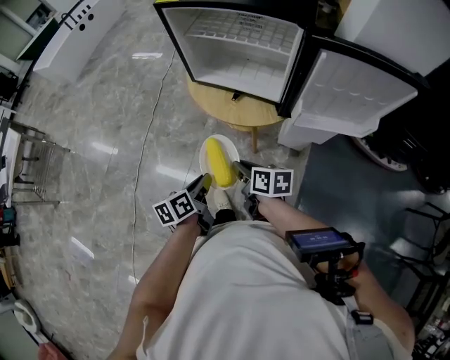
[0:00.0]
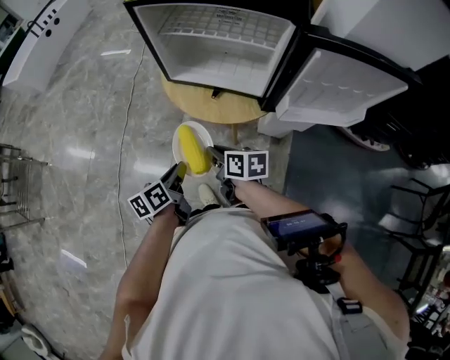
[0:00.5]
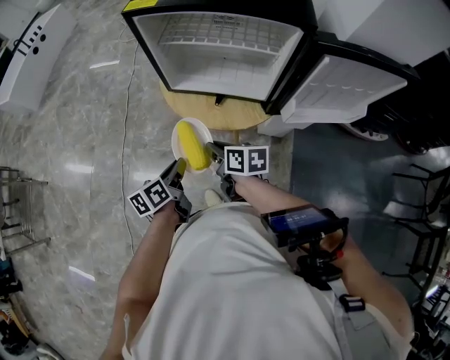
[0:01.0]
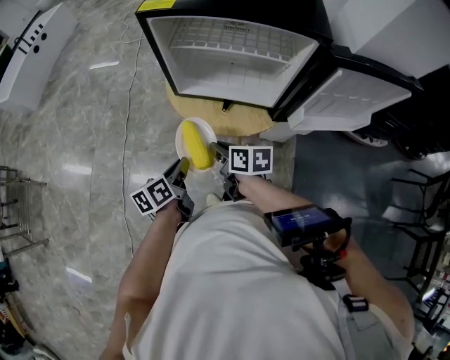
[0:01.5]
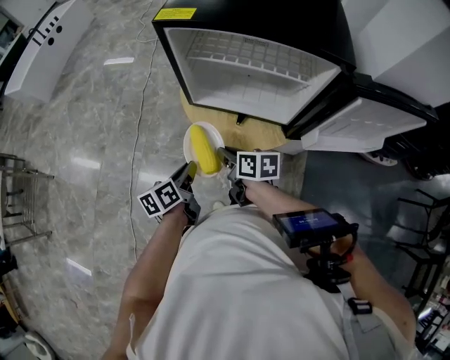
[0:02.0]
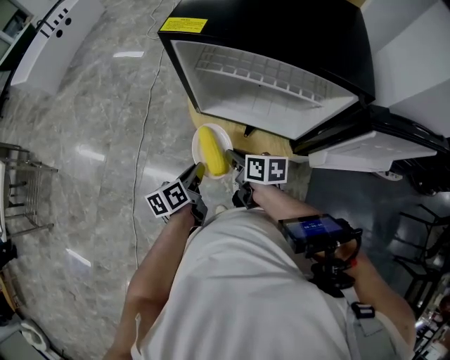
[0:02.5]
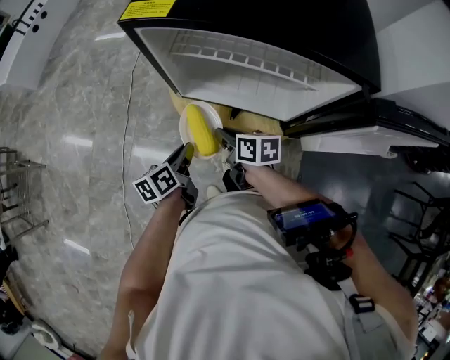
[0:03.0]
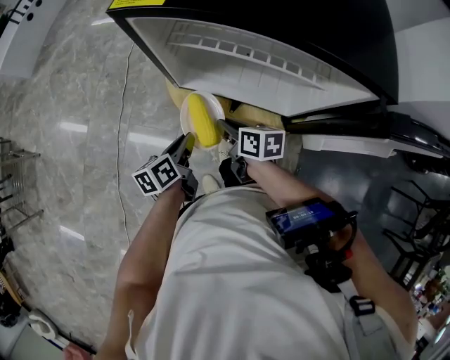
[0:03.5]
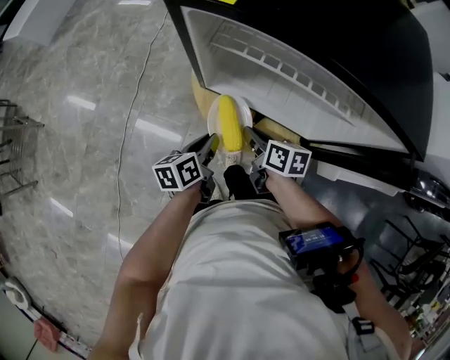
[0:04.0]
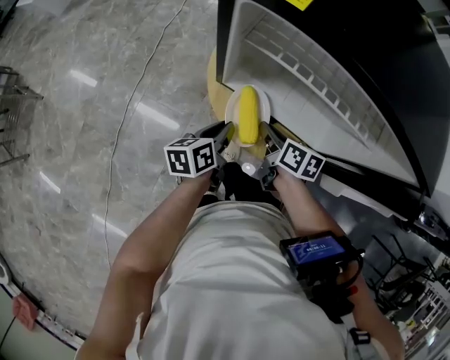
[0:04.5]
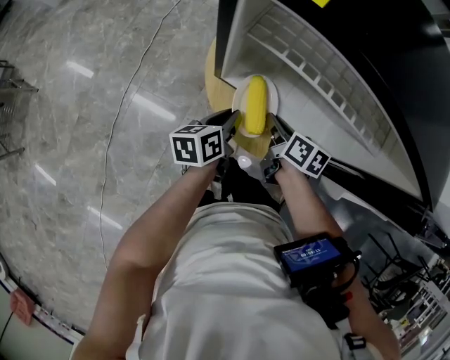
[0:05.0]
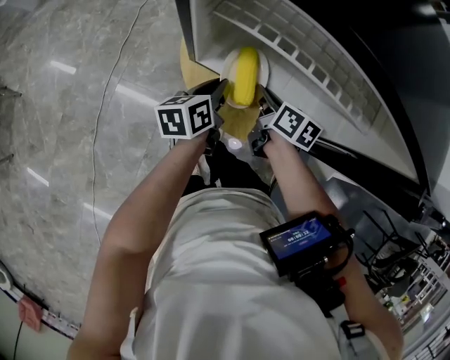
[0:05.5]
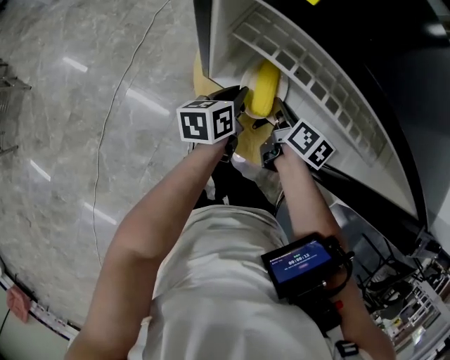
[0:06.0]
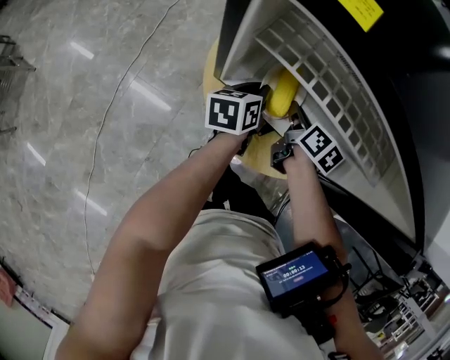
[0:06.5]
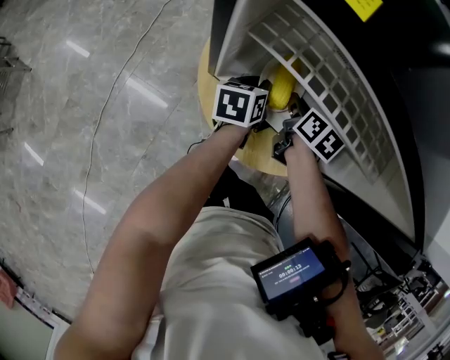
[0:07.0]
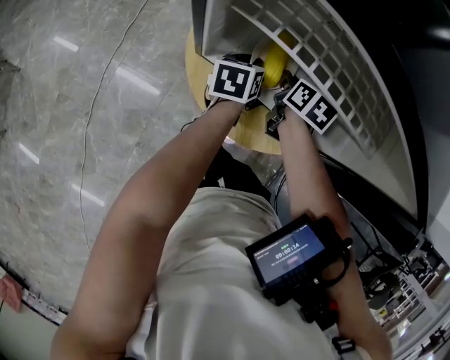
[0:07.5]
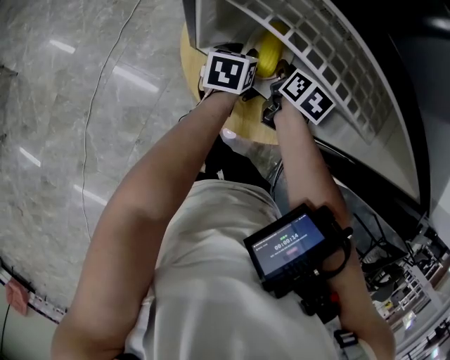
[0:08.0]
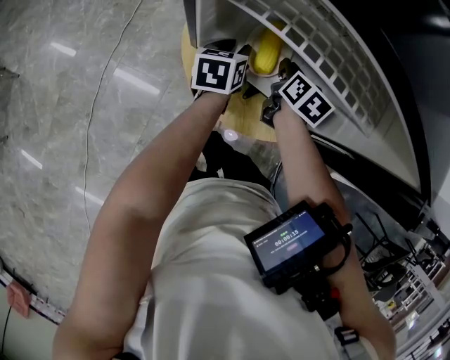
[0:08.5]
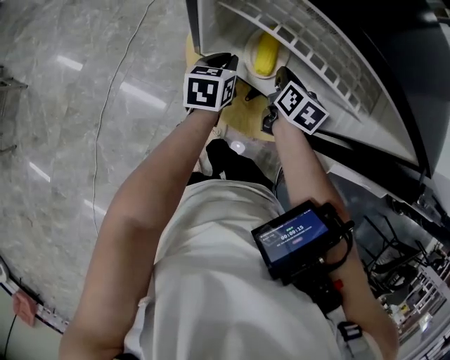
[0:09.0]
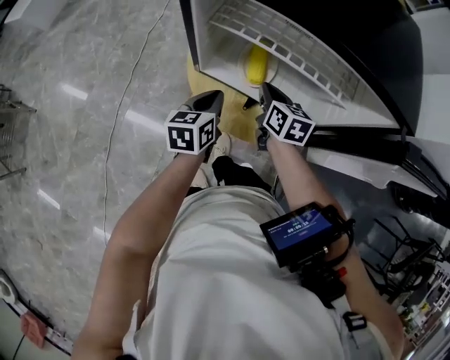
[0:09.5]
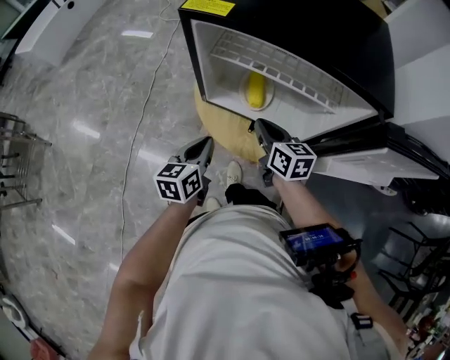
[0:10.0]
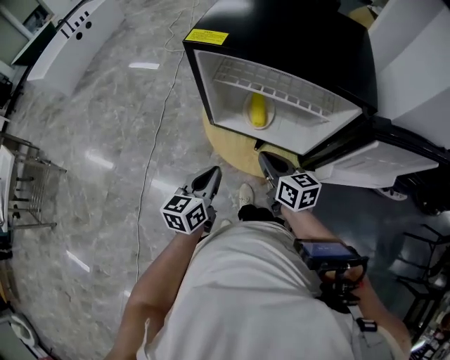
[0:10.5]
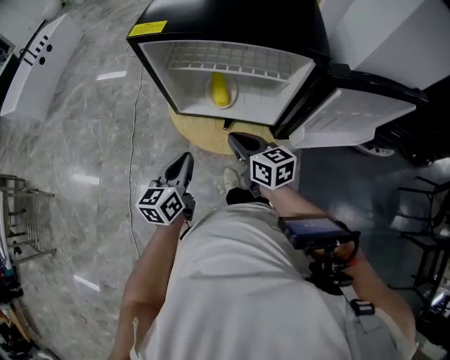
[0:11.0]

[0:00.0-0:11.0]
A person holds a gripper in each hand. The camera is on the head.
0:00.0 to 0:02.0: Both grippers travel together forward and to the left, about 20 cm.
0:02.0 to 0:03.5: The two grippers go about 10 cm forward.
0:03.5 to 0:05.5: Both grippers travel together forward and to the right, some 10 cm.
0:05.5 to 0:07.5: Both grippers travel together forward, some 10 cm. The right gripper turns by roughly 20 degrees.
0:07.5 to 0:09.0: The left gripper ends up some 5 cm from where it was.
0:09.0 to 0:11.0: Both grippers move backward and upward, roughly 25 cm. The right gripper turns by roughly 30 degrees. The left gripper rotates approximately 20 degrees.

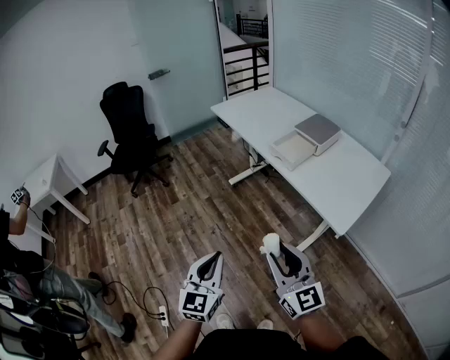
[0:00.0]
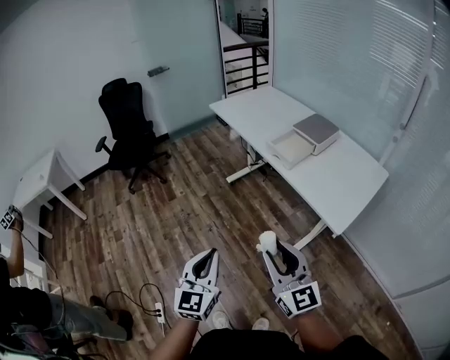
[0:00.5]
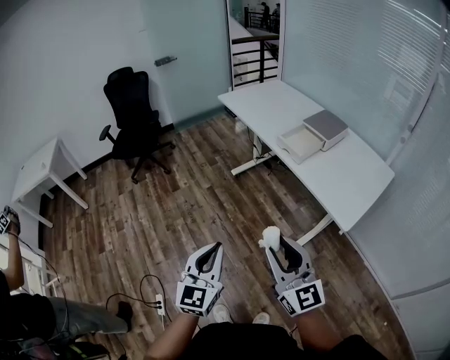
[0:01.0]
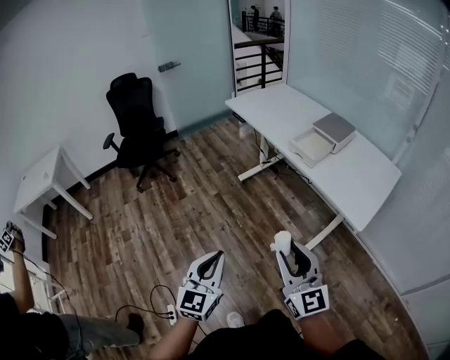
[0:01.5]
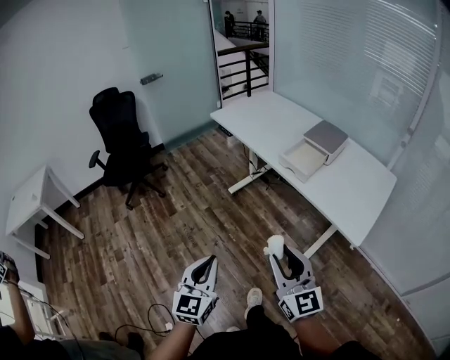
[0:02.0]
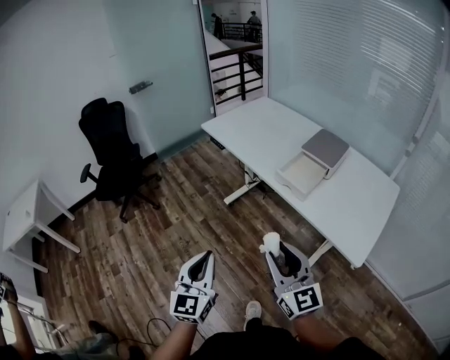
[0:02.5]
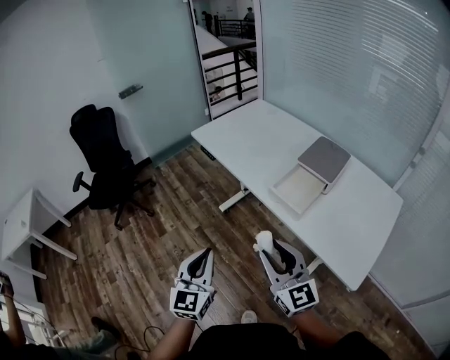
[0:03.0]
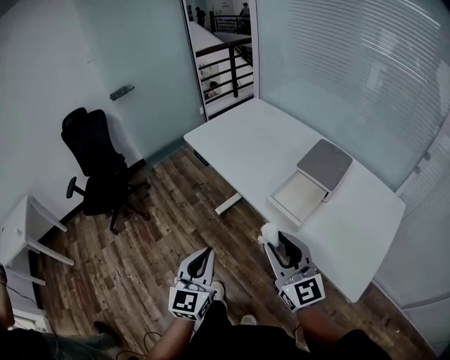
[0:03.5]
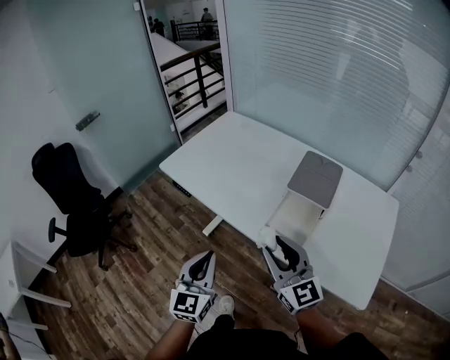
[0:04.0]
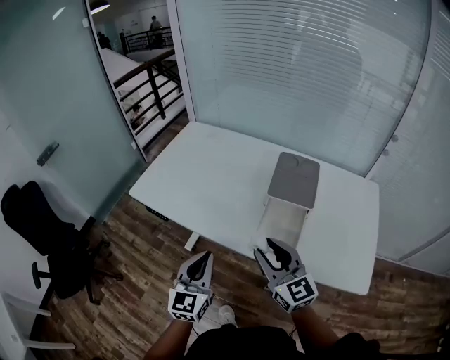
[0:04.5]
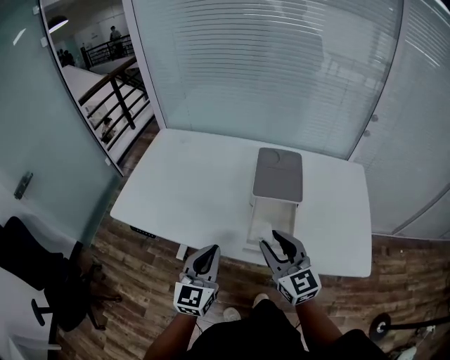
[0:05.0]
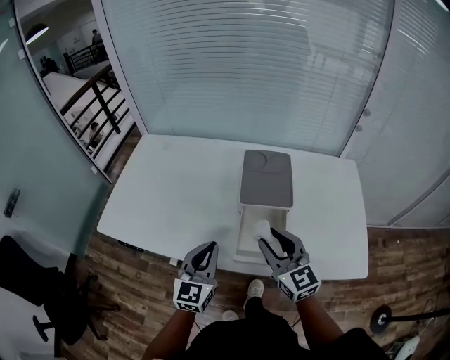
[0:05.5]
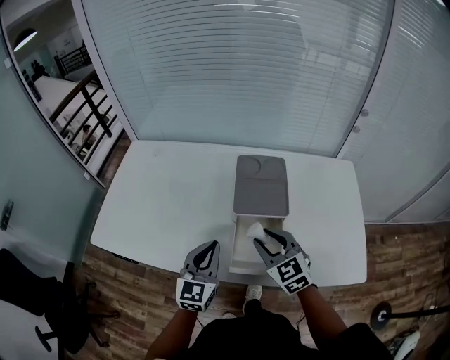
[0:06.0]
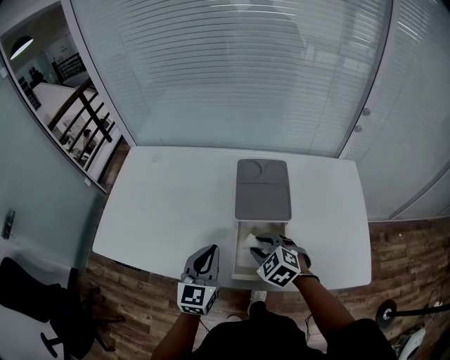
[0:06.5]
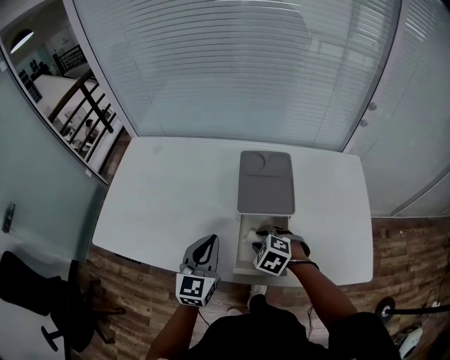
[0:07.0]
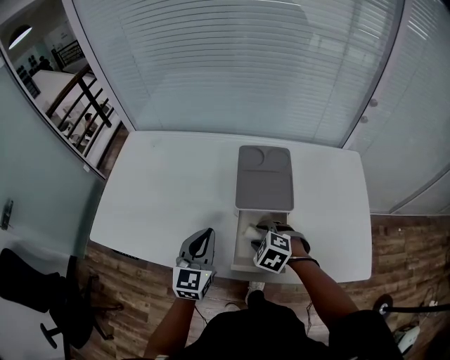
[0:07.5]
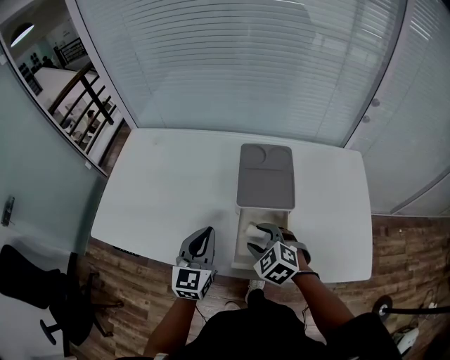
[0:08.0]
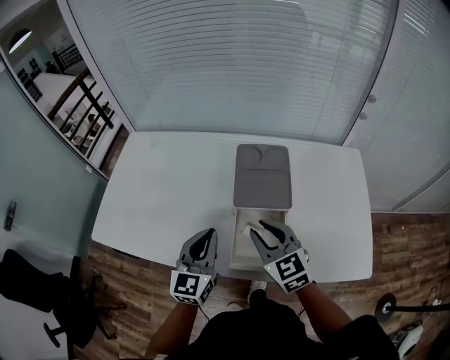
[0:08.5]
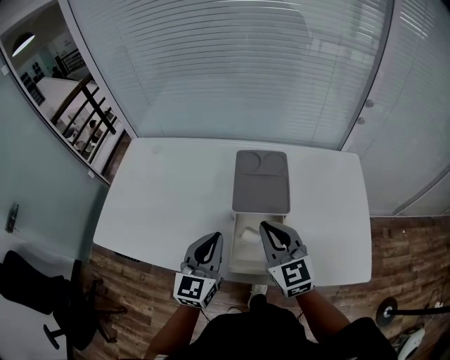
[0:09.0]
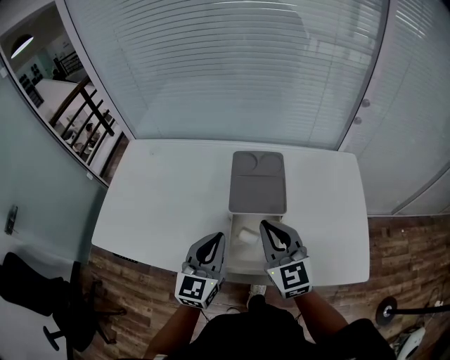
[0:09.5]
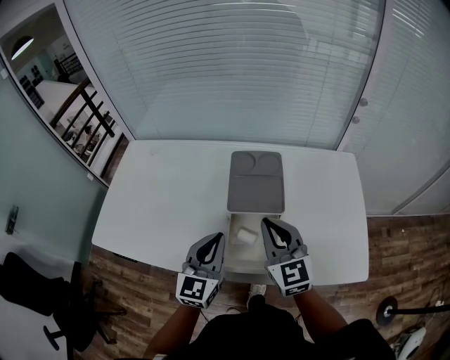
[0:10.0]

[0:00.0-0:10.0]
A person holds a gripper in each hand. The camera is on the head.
0:00.0 to 0:02.0: The right gripper shifts approximately 10 cm forward and to the left; the left gripper travels to the left and forward by roughly 10 cm.
0:02.0 to 0:04.0: The pair of grippers is taken forward, roughly 40 cm.
0:04.0 to 0:06.0: The right gripper changes place by roughly 20 cm, and turns by some 40 degrees. Meanwhile the left gripper shifts by about 25 cm, and swivels some 30 degrees.
0:06.0 to 0:08.0: The right gripper is displaced downward by about 5 cm, and changes its angle by about 30 degrees.
0:08.0 to 0:10.0: The right gripper moves upward and to the right, about 15 cm, tilts its fingers approximately 40 degrees upward, and closes its fingers, while the left gripper travels to the right by roughly 5 cm.

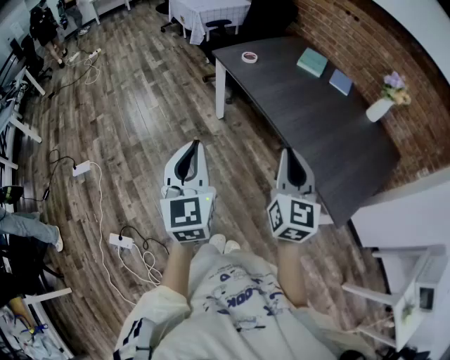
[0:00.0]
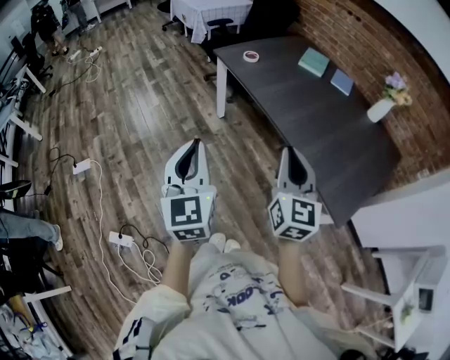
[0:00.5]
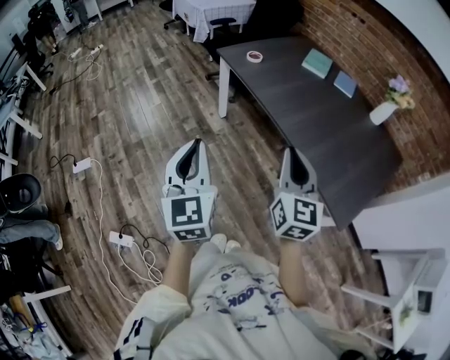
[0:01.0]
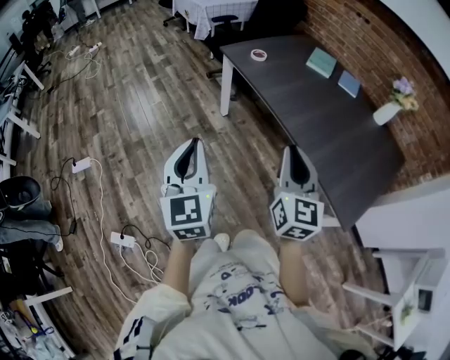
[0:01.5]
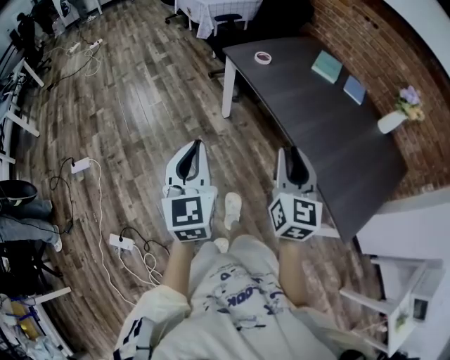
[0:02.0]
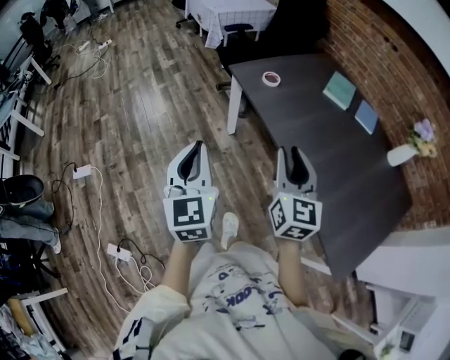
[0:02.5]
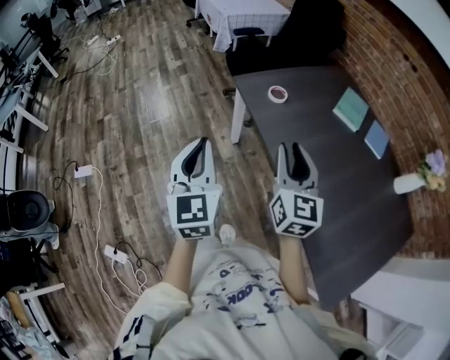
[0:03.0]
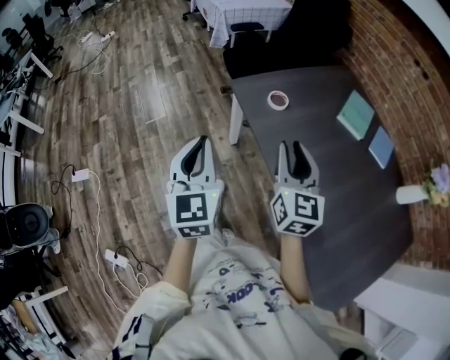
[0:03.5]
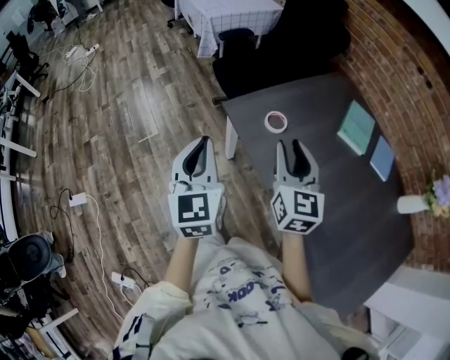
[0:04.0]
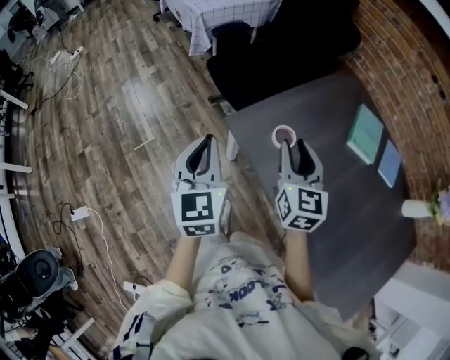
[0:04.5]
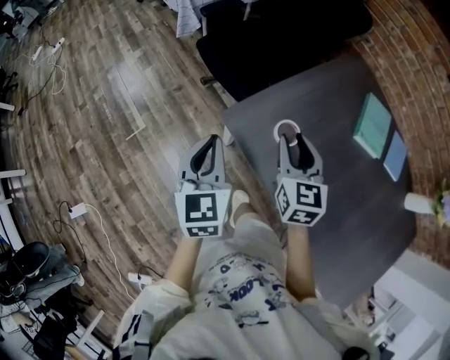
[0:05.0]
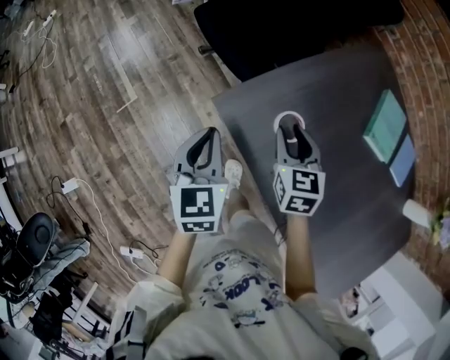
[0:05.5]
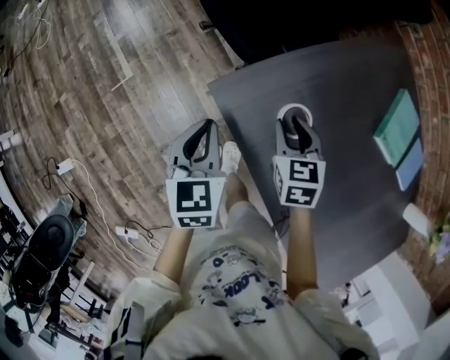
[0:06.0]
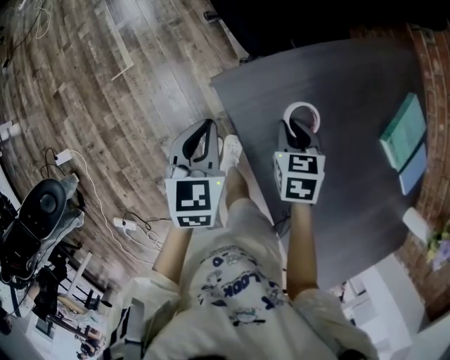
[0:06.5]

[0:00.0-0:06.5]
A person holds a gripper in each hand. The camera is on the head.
0:00.0 to 0:02.0: The two grippers go some 10 cm forward and to the left.
0:02.0 to 0:04.5: The pair of grippers is taken forward, roughly 60 cm.
0:04.5 to 0:06.5: Both grippers move downward, about 25 cm. The right gripper angles its fingers downward, by roughly 50 degrees; the left gripper changes its angle by approximately 30 degrees.
